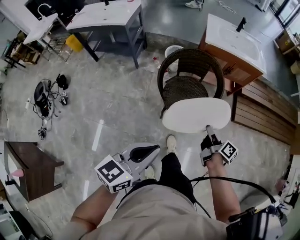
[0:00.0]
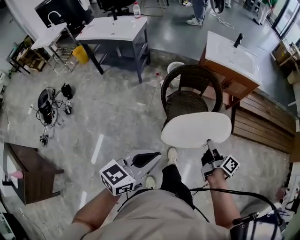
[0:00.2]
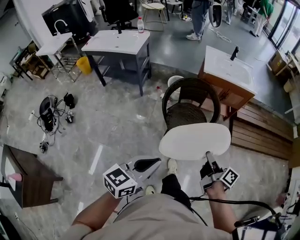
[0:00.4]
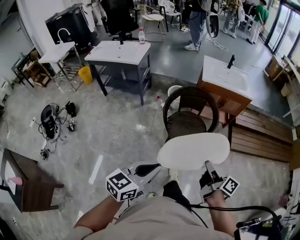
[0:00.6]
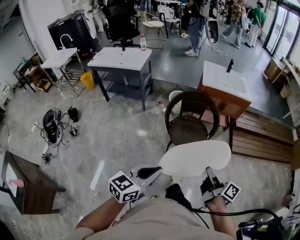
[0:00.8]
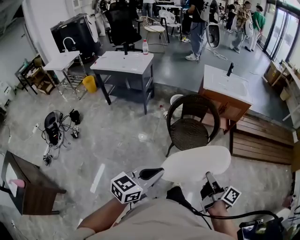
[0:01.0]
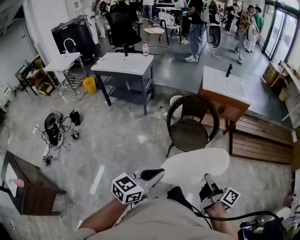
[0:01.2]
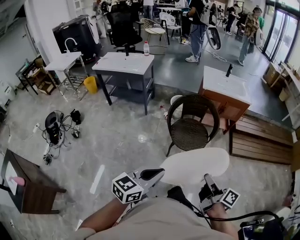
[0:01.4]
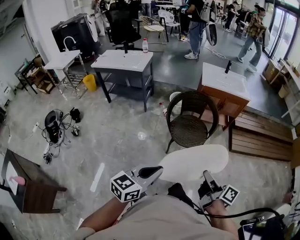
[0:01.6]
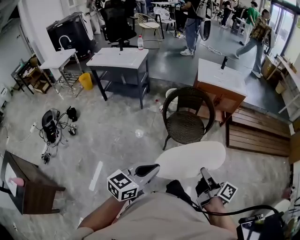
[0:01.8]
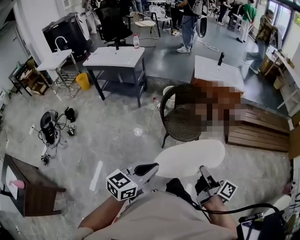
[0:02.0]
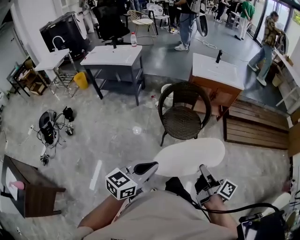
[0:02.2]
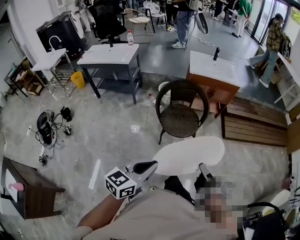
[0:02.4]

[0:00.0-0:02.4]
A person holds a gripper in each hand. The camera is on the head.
0:00.0 to 0:01.2: The right gripper goes roughly 30 cm backward and upward. Meanwhile the left gripper is displaced backward by roughly 15 cm.
0:01.2 to 0:02.4: The grippers make only small movements.

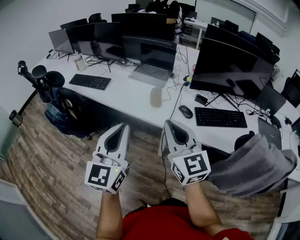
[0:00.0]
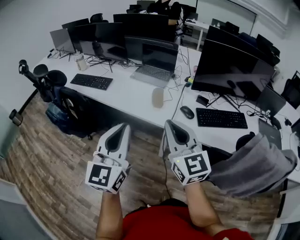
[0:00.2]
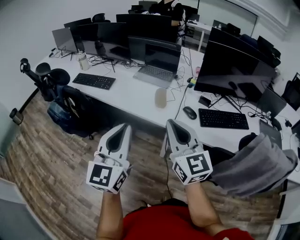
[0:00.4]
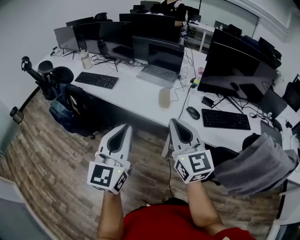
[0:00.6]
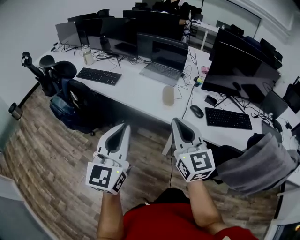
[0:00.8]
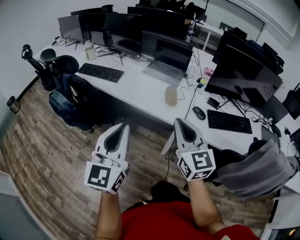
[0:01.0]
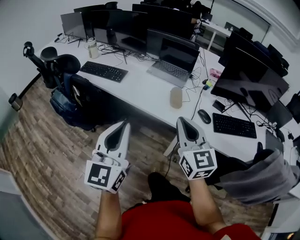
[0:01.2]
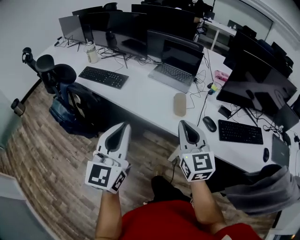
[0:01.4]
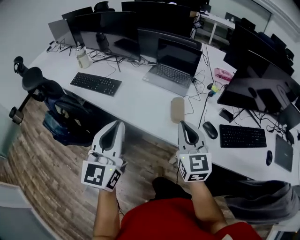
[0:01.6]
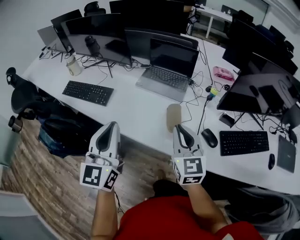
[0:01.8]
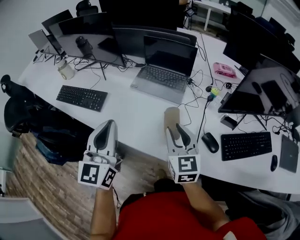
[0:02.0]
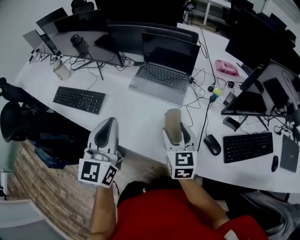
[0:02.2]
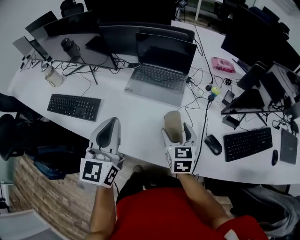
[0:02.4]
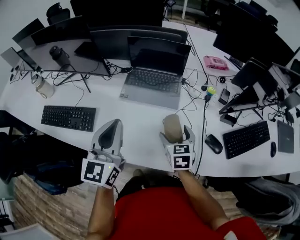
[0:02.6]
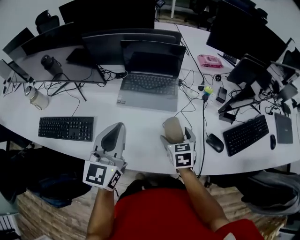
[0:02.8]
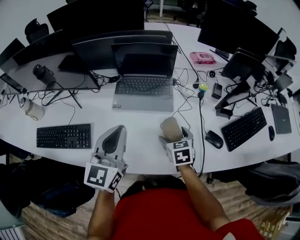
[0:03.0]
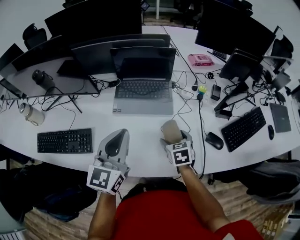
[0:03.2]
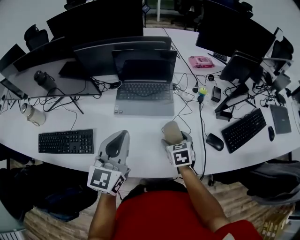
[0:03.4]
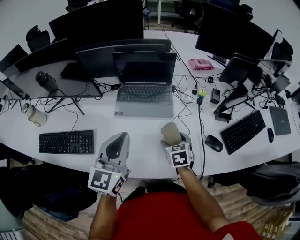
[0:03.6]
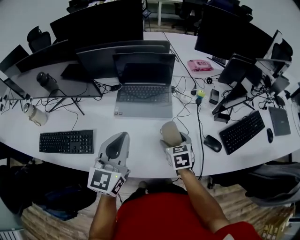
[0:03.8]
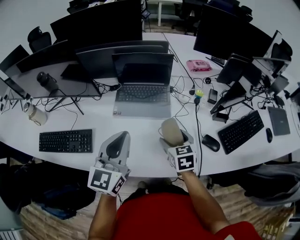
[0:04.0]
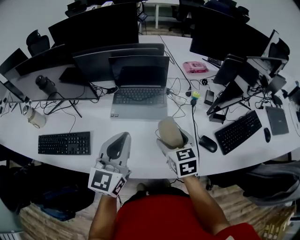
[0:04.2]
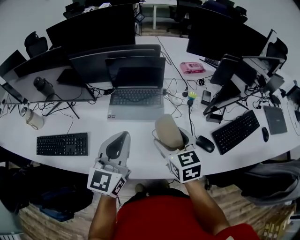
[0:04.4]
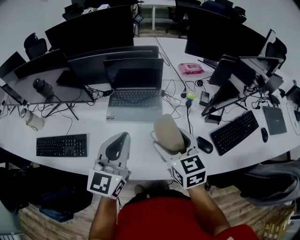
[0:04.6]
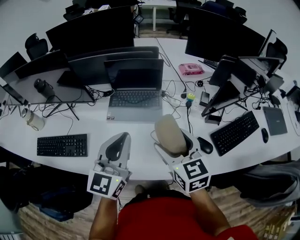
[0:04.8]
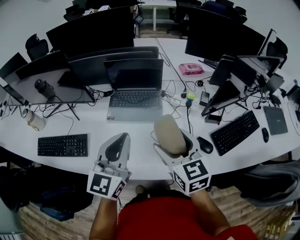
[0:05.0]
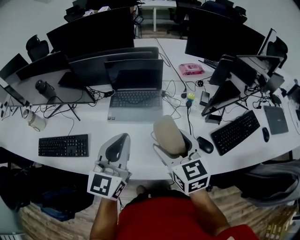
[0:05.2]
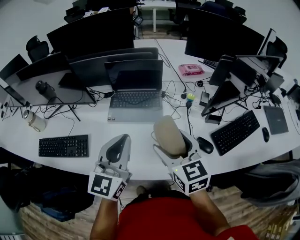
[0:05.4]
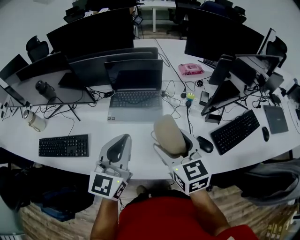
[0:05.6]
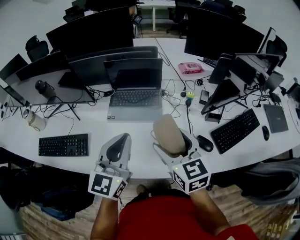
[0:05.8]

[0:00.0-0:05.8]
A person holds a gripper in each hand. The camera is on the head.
0:00.0 to 0:01.4: The right gripper is displaced forward, downward and to the left by approximately 15 cm, while the left gripper goes some 15 cm to the left and forward.
0:01.4 to 0:02.8: The left gripper goes roughly 40 cm forward, and changes its angle by approximately 20 degrees, while the right gripper shifts about 40 cm forward and downward, points its fingers about 40 degrees further downward, and opens up.
0:02.8 to 0:04.4: The right gripper moves upward, approximately 15 cm; the left gripper travels to the right by approximately 5 cm.
0:04.4 to 0:05.8: The right gripper moves upward, approximately 5 cm.

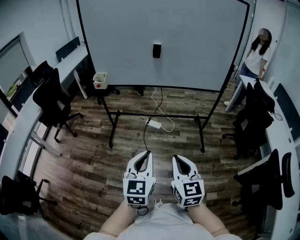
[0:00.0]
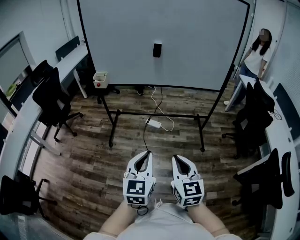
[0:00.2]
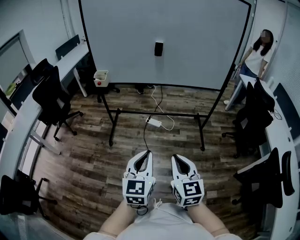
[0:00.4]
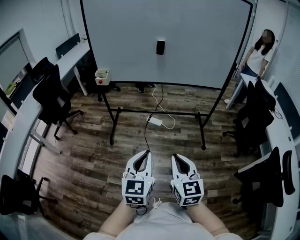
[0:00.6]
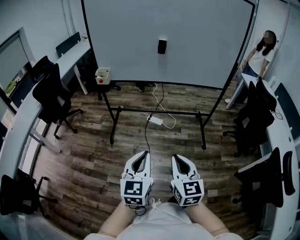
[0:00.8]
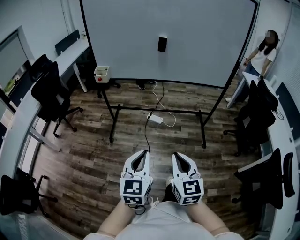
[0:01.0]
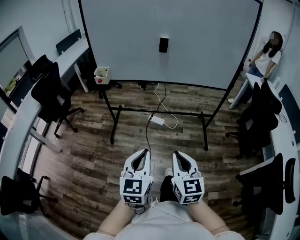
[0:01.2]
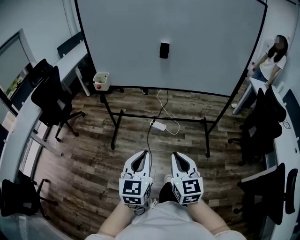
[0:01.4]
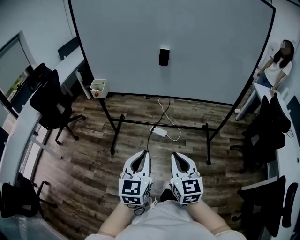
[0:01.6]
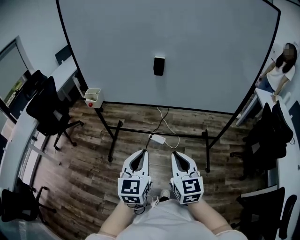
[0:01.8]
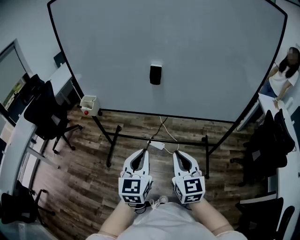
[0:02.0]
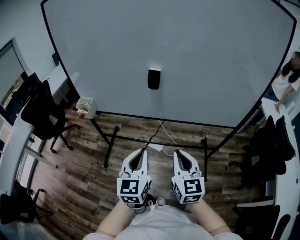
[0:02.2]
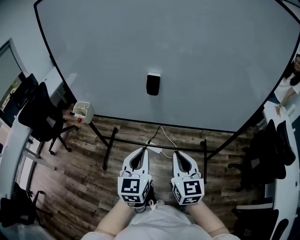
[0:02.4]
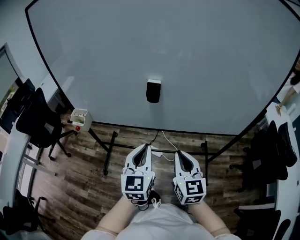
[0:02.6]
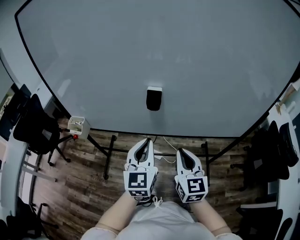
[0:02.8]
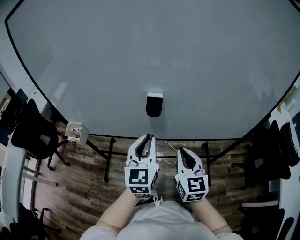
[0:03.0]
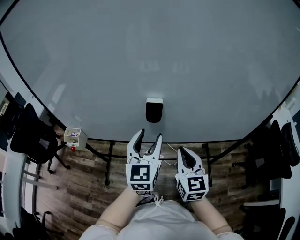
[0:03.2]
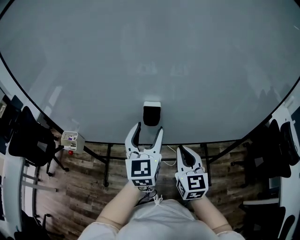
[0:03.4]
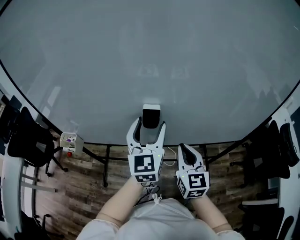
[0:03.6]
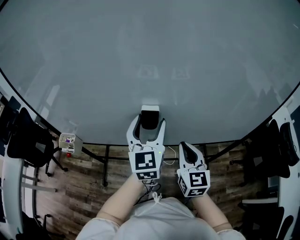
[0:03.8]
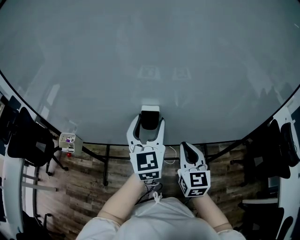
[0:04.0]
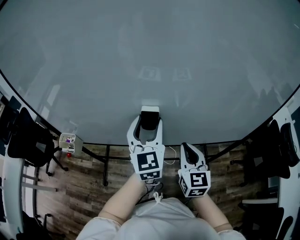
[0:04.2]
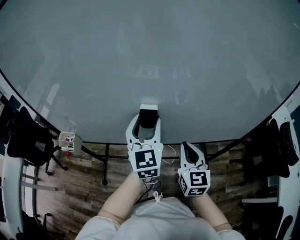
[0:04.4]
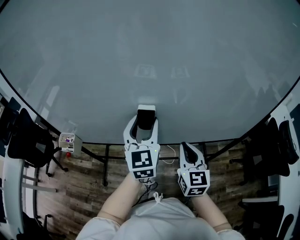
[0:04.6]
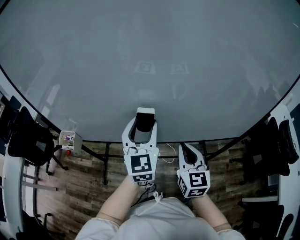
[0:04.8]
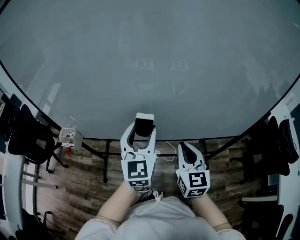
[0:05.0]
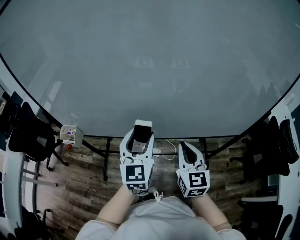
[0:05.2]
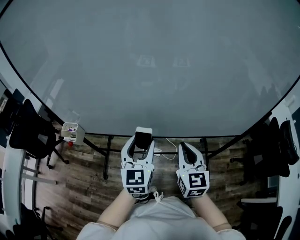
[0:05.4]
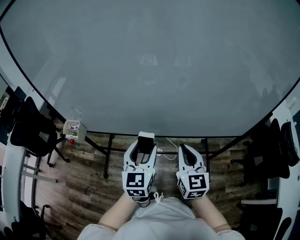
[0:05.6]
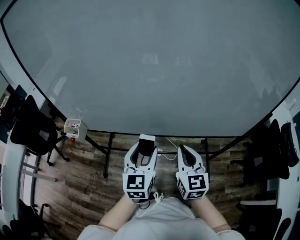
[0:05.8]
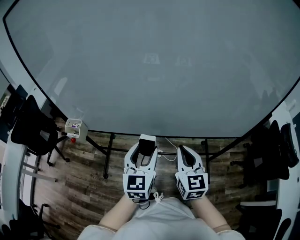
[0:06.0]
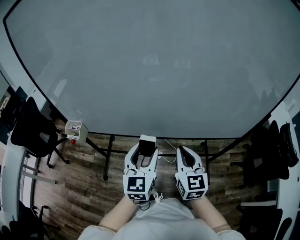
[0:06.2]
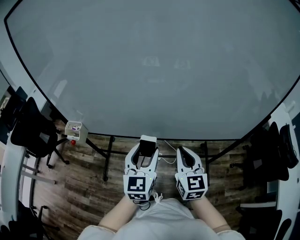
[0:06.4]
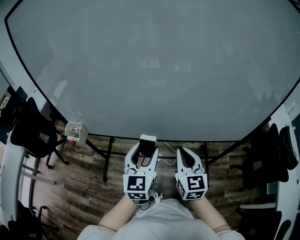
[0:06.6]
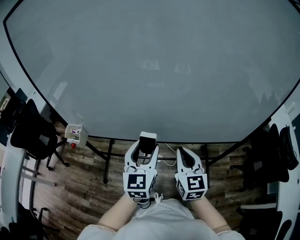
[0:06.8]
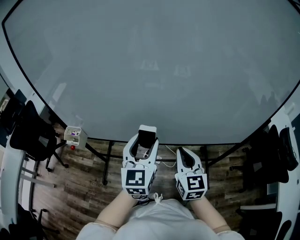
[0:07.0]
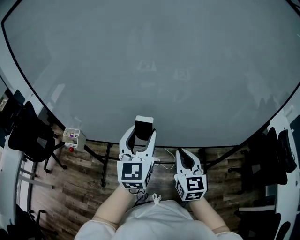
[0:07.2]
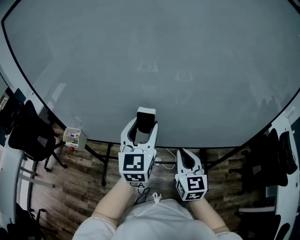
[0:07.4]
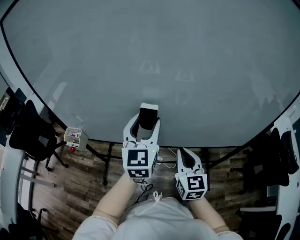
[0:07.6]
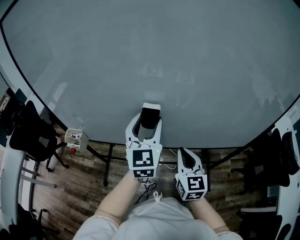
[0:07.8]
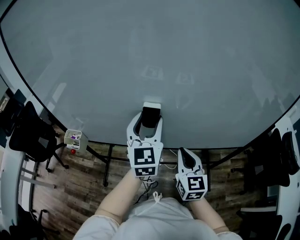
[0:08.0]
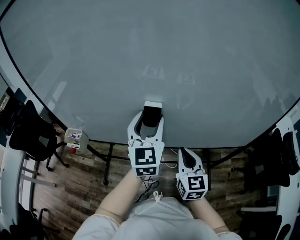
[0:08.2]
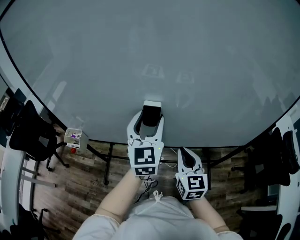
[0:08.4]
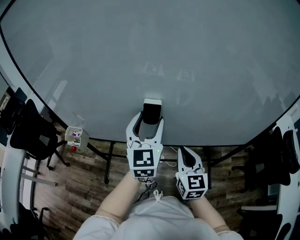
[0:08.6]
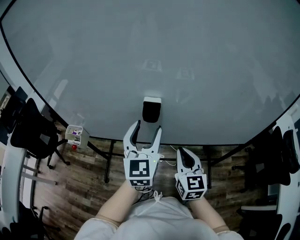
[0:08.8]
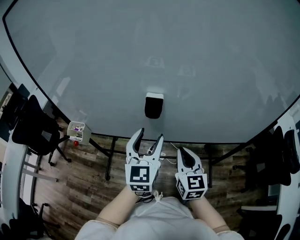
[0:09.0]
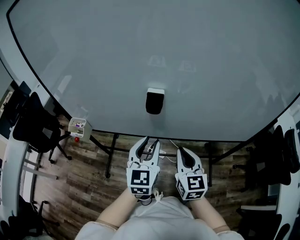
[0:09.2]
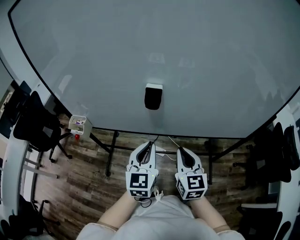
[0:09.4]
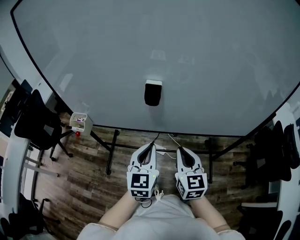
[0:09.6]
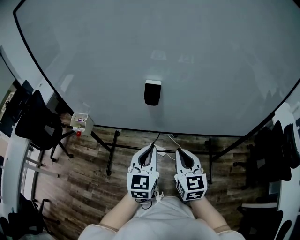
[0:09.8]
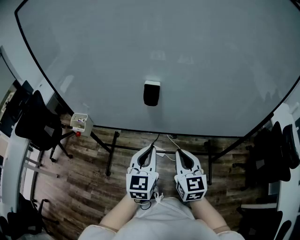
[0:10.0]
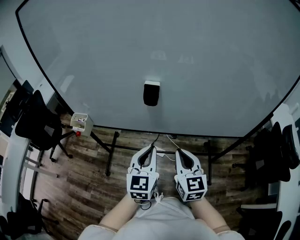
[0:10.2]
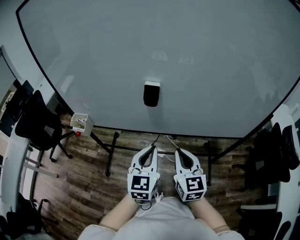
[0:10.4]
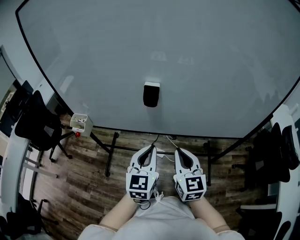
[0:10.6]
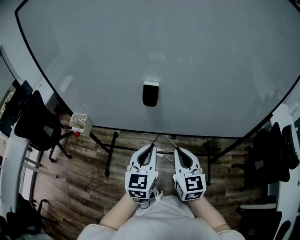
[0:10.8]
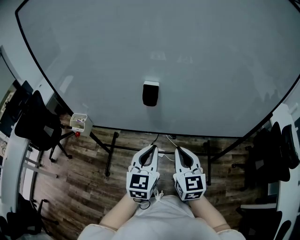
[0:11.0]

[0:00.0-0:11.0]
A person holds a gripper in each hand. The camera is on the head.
0:00.0 to 0:01.6: Both grippers travel together forward, roughly 20 cm.
0:01.6 to 0:03.2: The grippers both shift forward by approximately 40 cm. The left gripper opens up.
0:03.2 to 0:04.8: The left gripper ends up some 5 cm from where it was.
0:04.8 to 0:06.2: The left gripper heads backward and downward, covering about 15 cm. Meanwhile the right gripper ends up roughly 5 cm from where it was.
0:06.2 to 0:07.8: The left gripper goes about 15 cm forward and upward. The right gripper shifts roughly 5 cm forward.
0:07.8 to 0:09.4: The left gripper moves backward and downward, about 15 cm, and closes its fingers. Meanwhile the right gripper goes roughly 5 cm backward.
0:09.4 to 0:11.0: The grippers make only small movements.

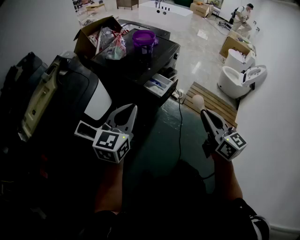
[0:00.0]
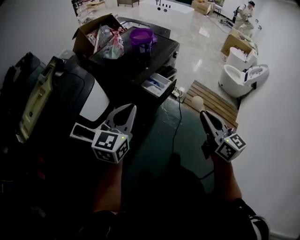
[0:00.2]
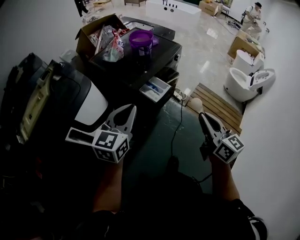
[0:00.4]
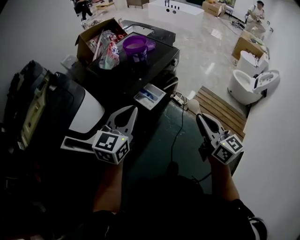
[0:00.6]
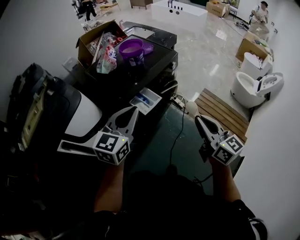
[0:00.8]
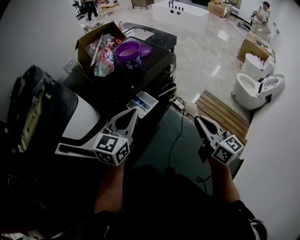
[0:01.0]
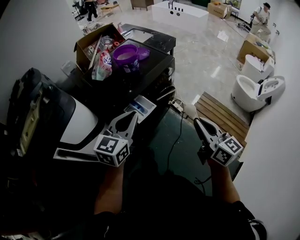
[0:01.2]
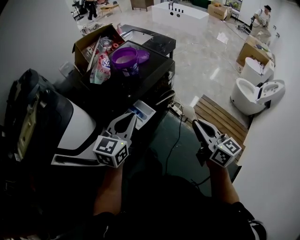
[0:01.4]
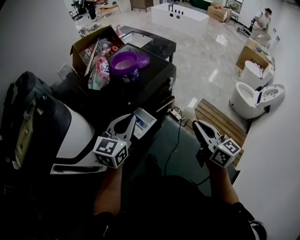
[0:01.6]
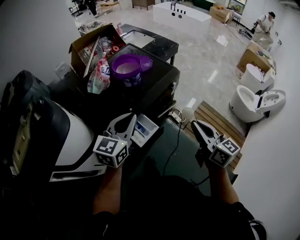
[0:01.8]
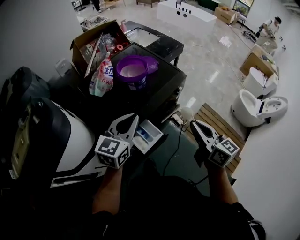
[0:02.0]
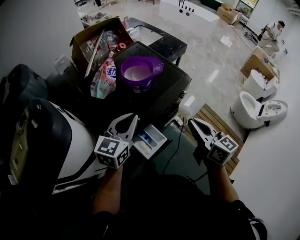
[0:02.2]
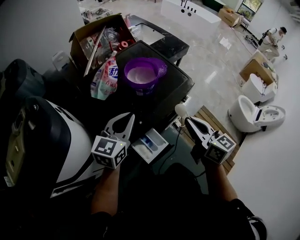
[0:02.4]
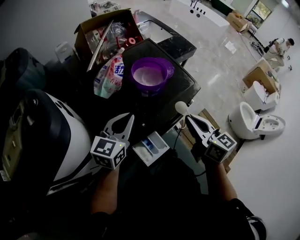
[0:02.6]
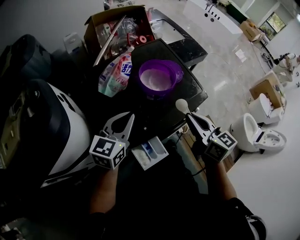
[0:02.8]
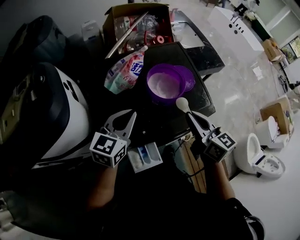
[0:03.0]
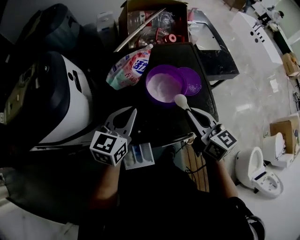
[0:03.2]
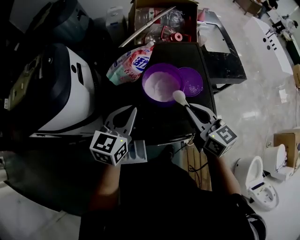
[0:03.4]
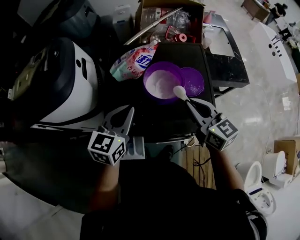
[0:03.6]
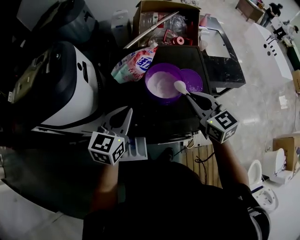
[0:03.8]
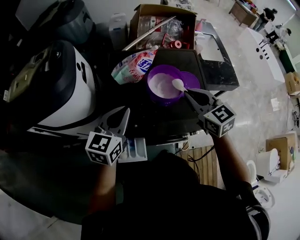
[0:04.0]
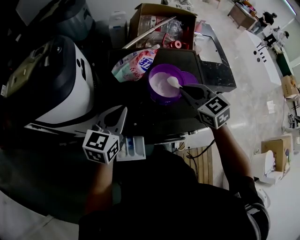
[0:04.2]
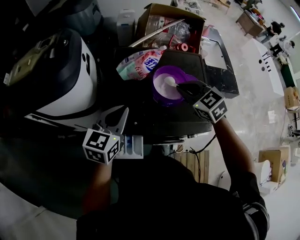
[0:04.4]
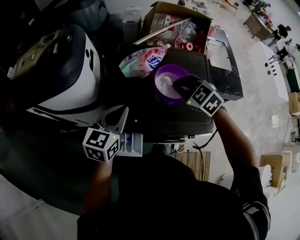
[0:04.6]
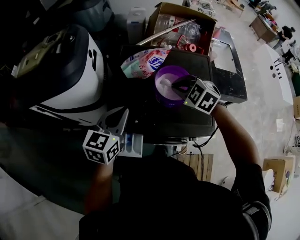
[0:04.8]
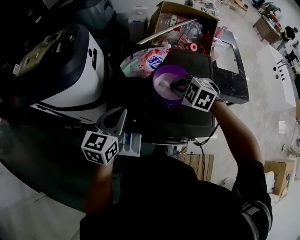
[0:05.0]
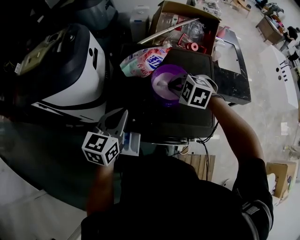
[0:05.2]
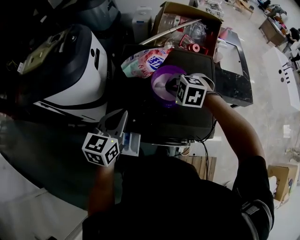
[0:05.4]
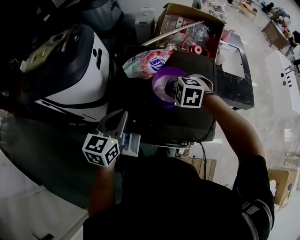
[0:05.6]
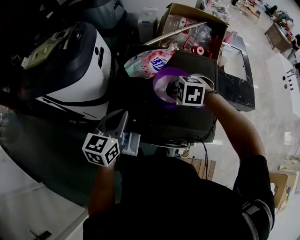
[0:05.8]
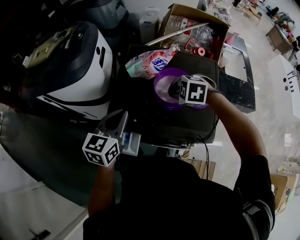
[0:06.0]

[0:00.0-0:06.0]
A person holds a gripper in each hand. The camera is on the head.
0:00.0 to 0:01.6: The two grippers go approximately 30 cm forward and to the right.
0:01.6 to 0:03.0: The right gripper moves some 40 cm, and swivels approximately 30 degrees; the left gripper moves about 25 cm, and rotates about 20 degrees.
0:03.0 to 0:04.4: The left gripper swivels about 20 degrees. Meanwhile the right gripper changes place by roughly 10 cm, and changes its angle by some 60 degrees.
0:04.4 to 0:06.0: The right gripper moves downward, roughly 5 cm, and rotates approximately 50 degrees.
